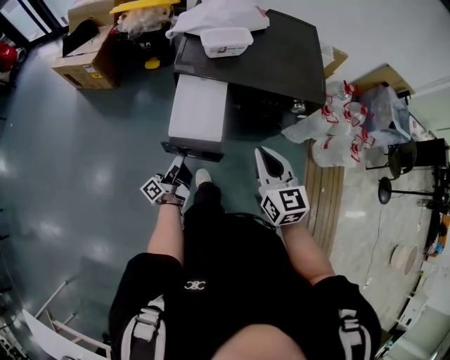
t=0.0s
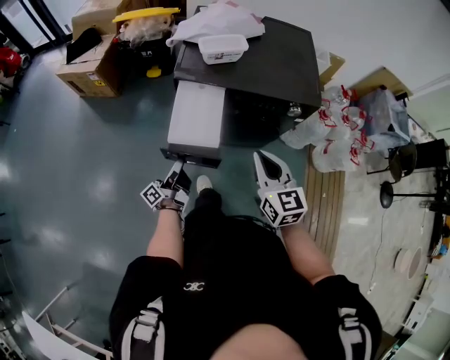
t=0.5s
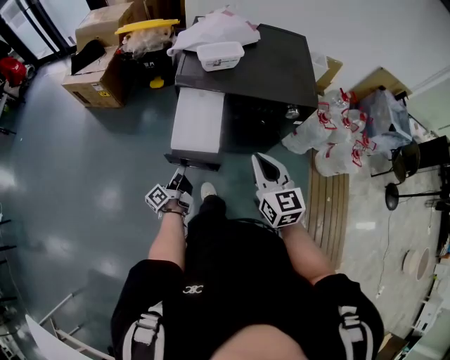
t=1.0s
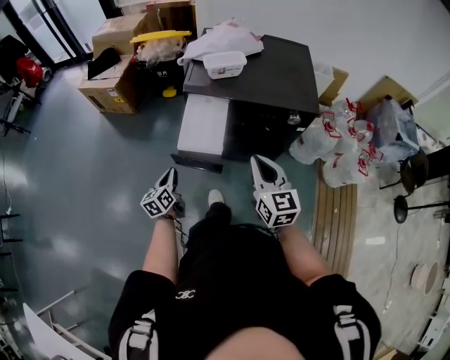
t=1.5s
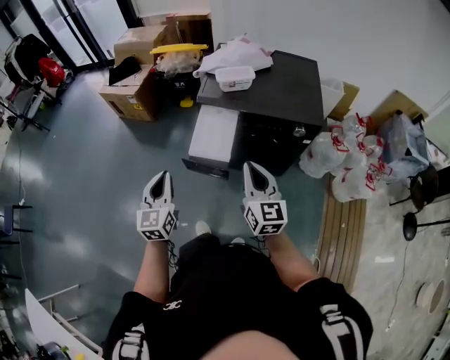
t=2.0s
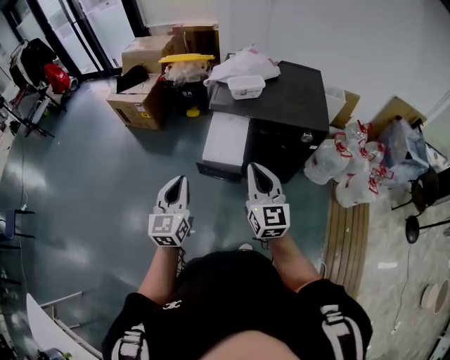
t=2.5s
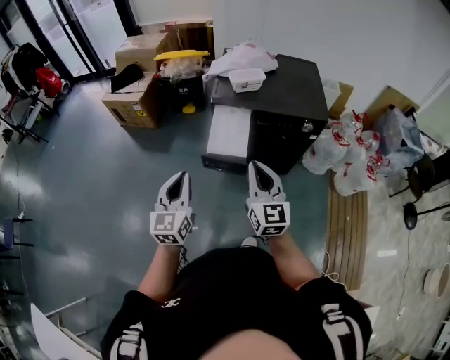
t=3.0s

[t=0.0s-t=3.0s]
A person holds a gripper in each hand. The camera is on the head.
t=0.0s to t=1.5s: The left gripper is displaced to the left by roughly 5 cm, and tilts its fingers about 40 degrees downward. The right gripper shifts by some 5 cm.
t=1.5s to t=3.0s: The right gripper moves to the left, upward and backward, some 15 cm. The left gripper is displaced upward and backward by approximately 30 cm, and changes its angle by some 40 degrees.

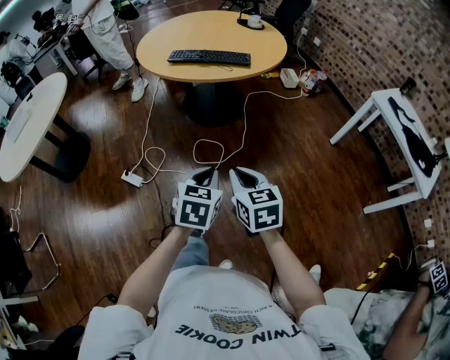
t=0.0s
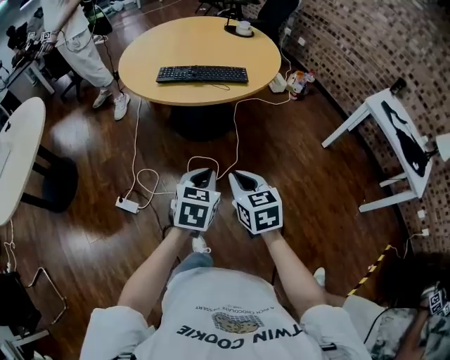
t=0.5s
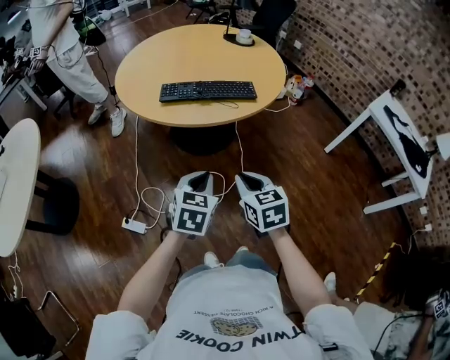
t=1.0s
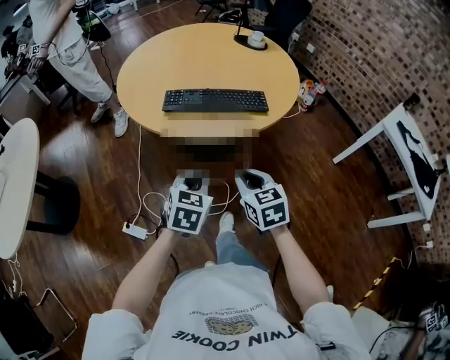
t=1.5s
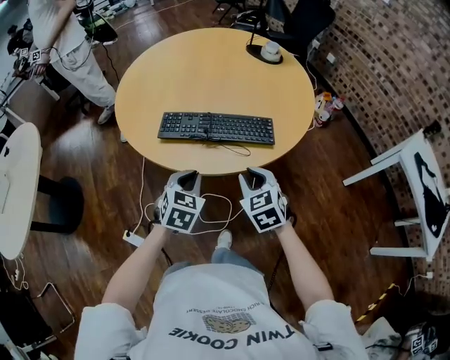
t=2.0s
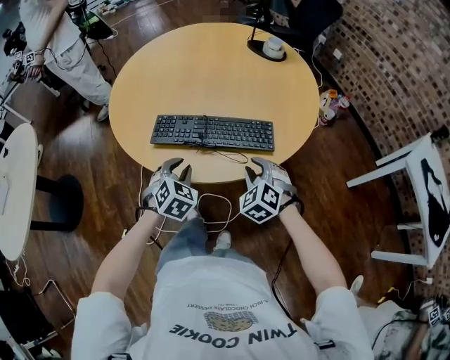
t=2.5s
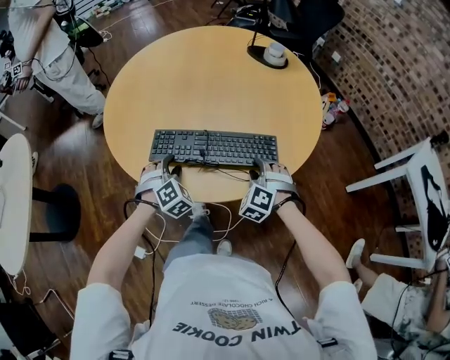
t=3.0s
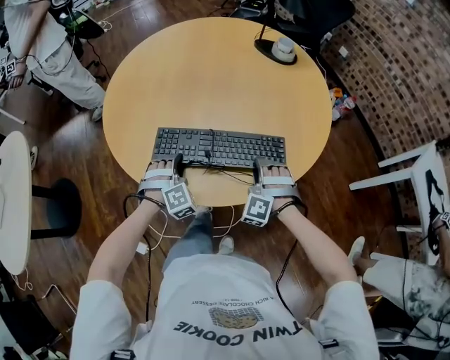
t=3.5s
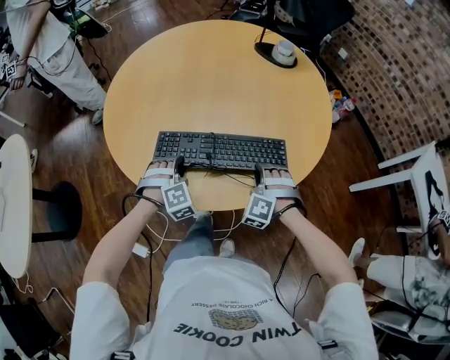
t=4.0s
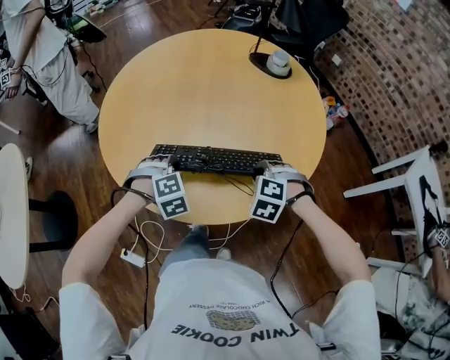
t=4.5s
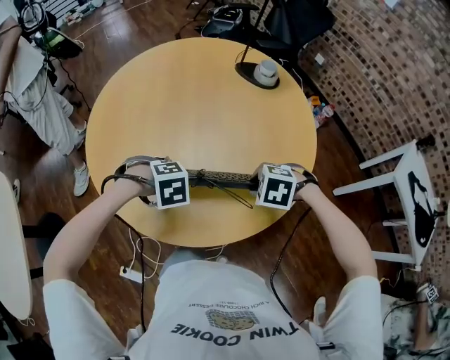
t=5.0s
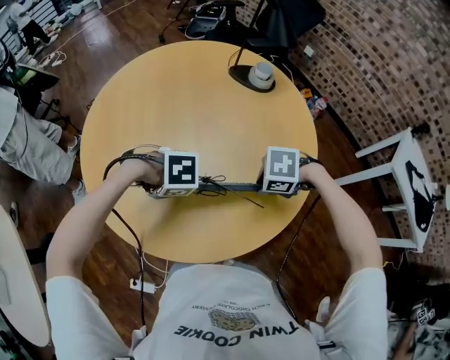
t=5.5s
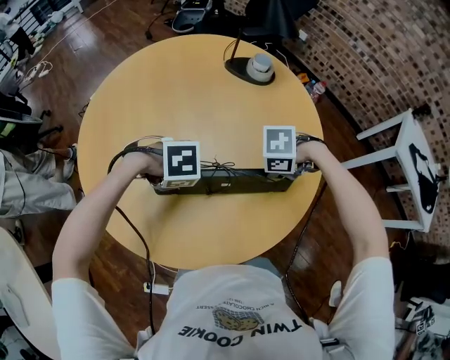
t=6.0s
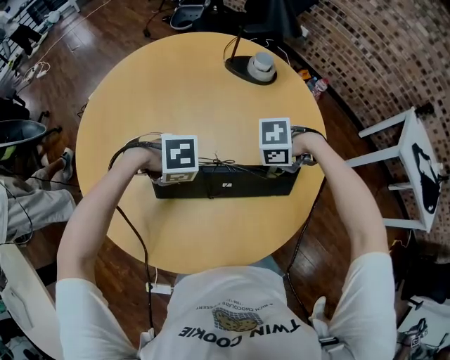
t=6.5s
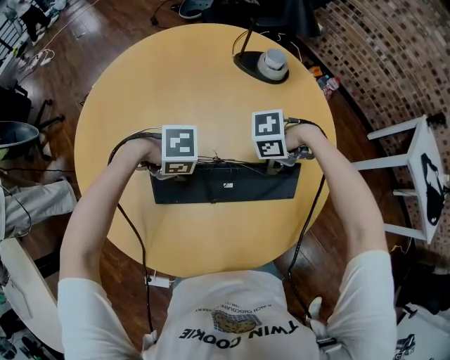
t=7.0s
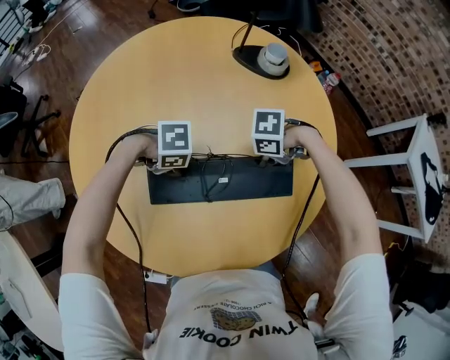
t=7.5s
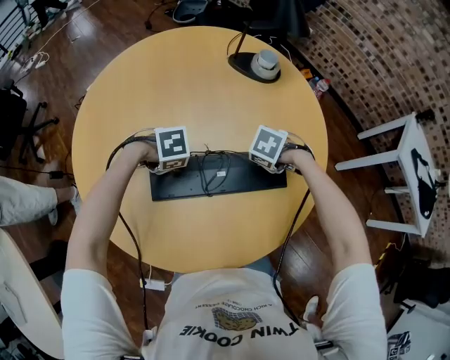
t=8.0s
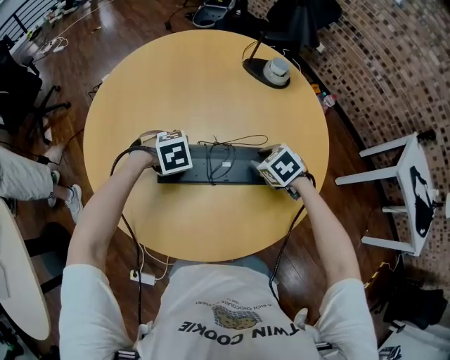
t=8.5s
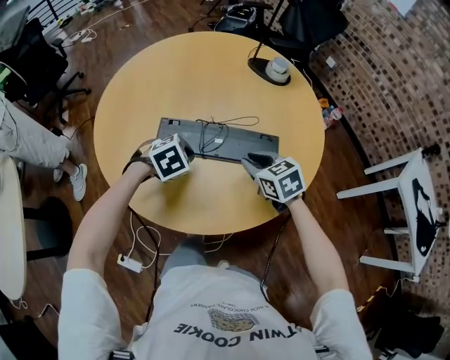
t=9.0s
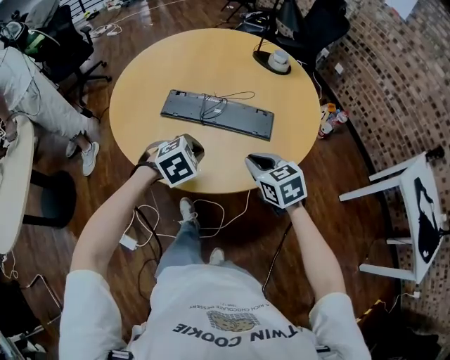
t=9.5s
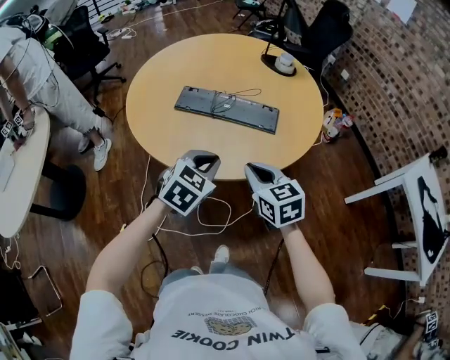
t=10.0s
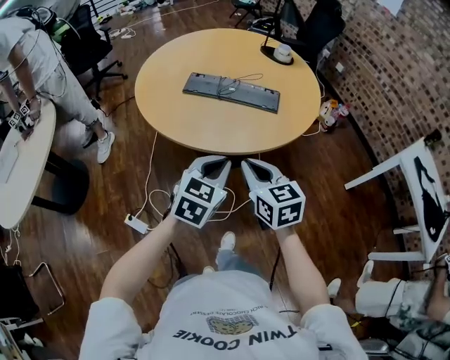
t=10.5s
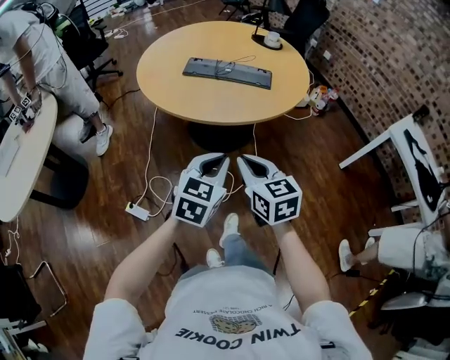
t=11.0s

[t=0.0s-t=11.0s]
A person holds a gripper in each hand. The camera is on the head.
t=0.0s to t=2.0s: The two grippers travel together, forward, some 50 cm. The right gripper swivels approximately 20 degrees.
t=2.0s to t=3.5s: The two grippers go approximately 20 cm forward and downward. The left gripper rolls clockwise, seen from behind, by approximately 50 degrees, and opens up, while the right gripper twists approximately 60 degrees counterclockwise, seen from behind, and opens up.
t=3.5s to t=5.5s: The left gripper ends up roughly 15 cm from where it was, and points its fingers approximately 30 degrees further downward. The right gripper travels upward by roughly 10 cm, and angles its fingers downward, by roughly 30 degrees.
t=5.5s to t=7.5s: The left gripper changes place by approximately 15 cm. The right gripper moves roughly 15 cm.
t=7.5s to t=9.0s: The left gripper ends up some 15 cm from where it was, swivels about 50 degrees, and closes, while the right gripper shifts by approximately 15 cm, and turns by about 70 degrees.
t=9.0s to t=11.0s: The two grippers travel together, backward, approximately 50 cm. The left gripper tips its fingers upward by approximately 40 degrees. Meanwhile the right gripper swivels roughly 20 degrees.

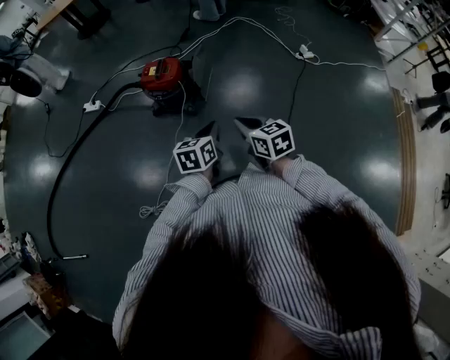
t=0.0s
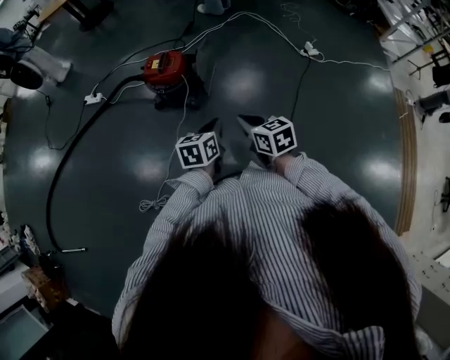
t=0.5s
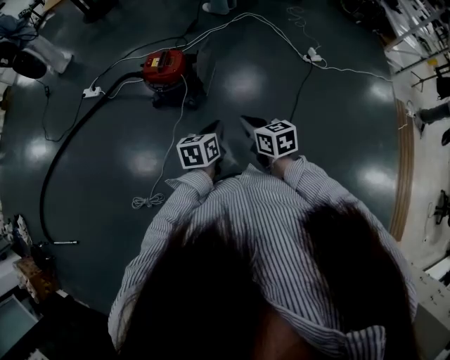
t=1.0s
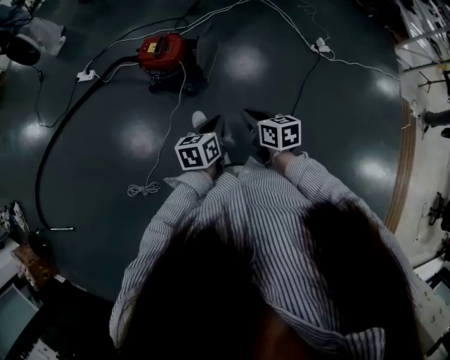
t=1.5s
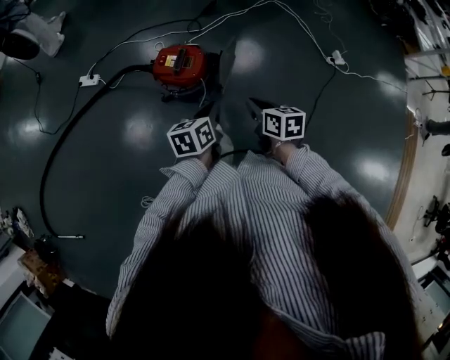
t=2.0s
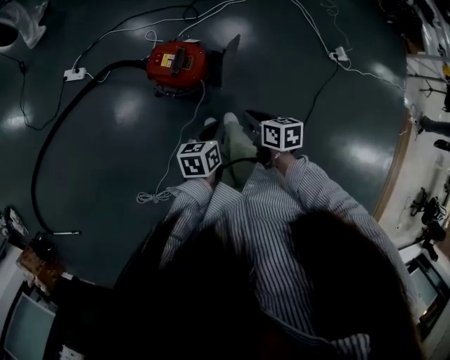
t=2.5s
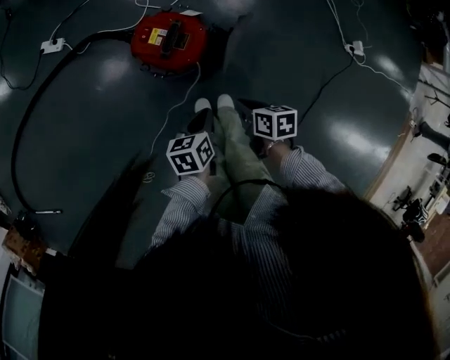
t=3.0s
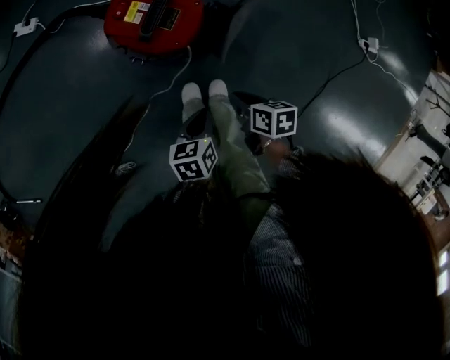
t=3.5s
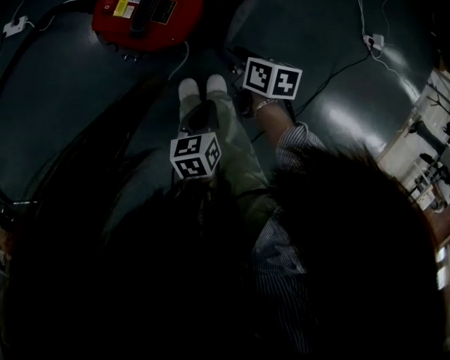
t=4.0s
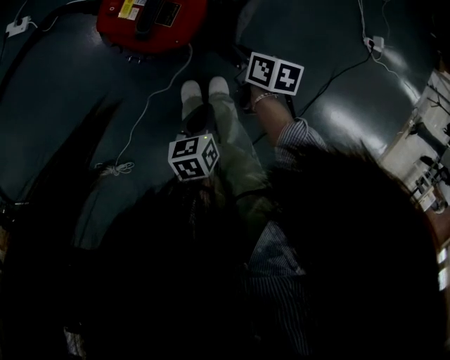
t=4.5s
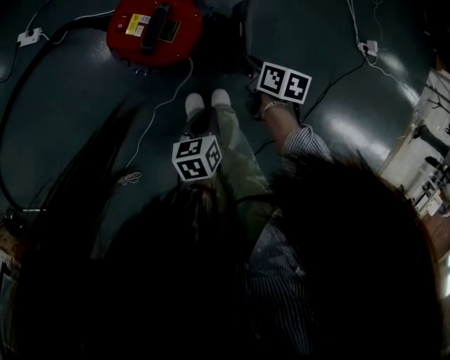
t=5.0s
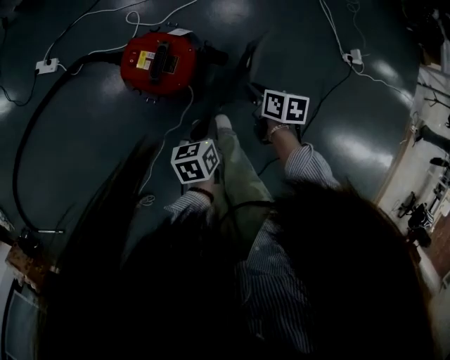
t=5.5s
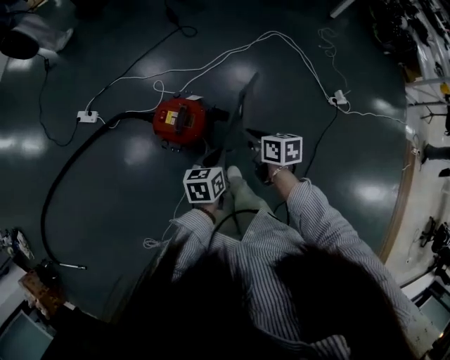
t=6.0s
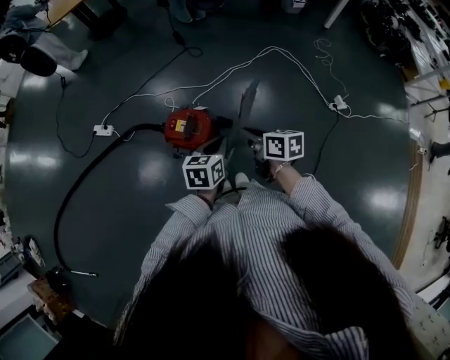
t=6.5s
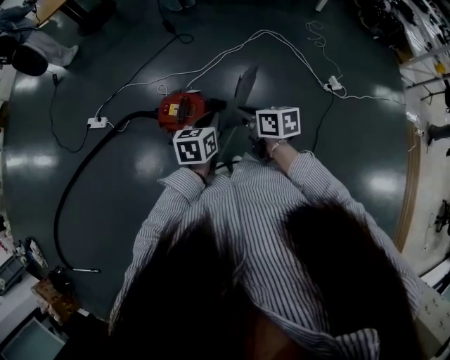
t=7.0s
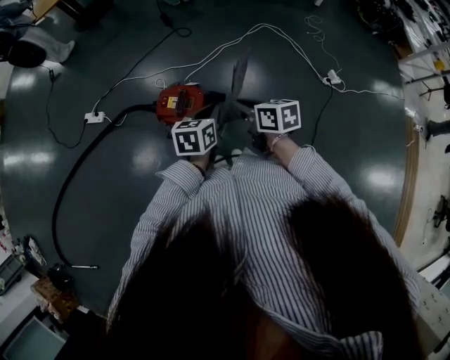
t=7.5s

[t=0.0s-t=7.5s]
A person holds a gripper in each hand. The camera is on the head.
t=0.0s to t=2.0s: The grippers both shift forward by some 25 cm.
t=2.0s to t=4.0s: The right gripper is displaced downward and forward by some 40 cm, rotates some 20 degrees, and opens its fingers, while the left gripper shifts approximately 30 cm downward, and rotates some 20 degrees.
t=4.0s to t=5.5s: The right gripper is displaced upward and to the right by roughly 15 cm, and closes up. Meanwhile the left gripper shifts about 10 cm upward and forward.
t=5.5s to t=7.5s: The two grippers go roughly 30 cm upward. The left gripper changes its angle by about 30 degrees. The right gripper rotates some 20 degrees.

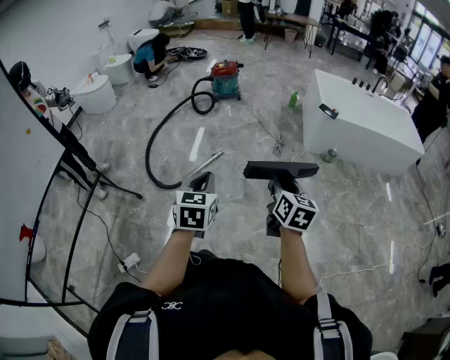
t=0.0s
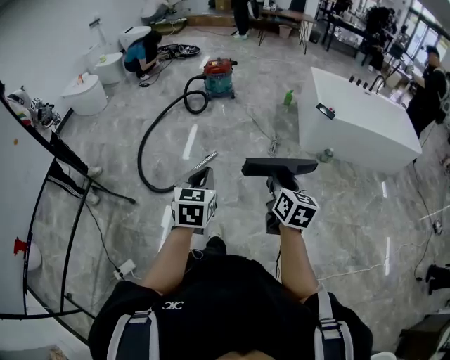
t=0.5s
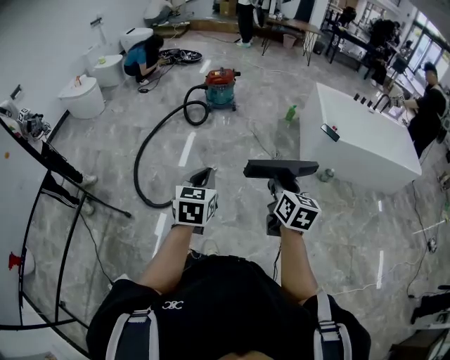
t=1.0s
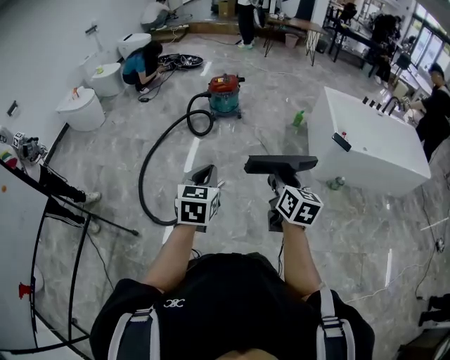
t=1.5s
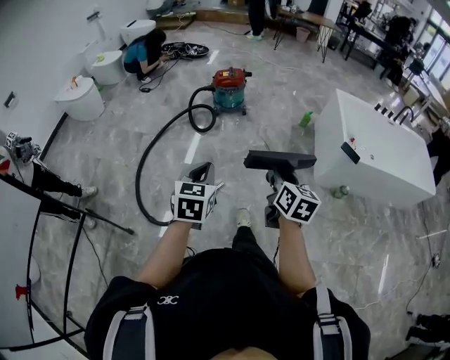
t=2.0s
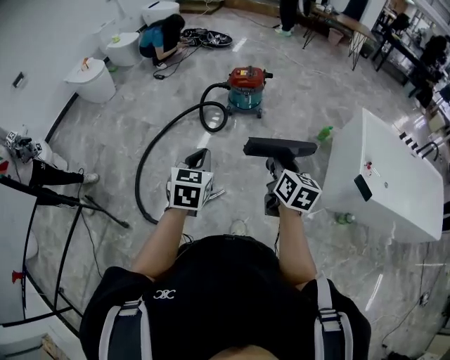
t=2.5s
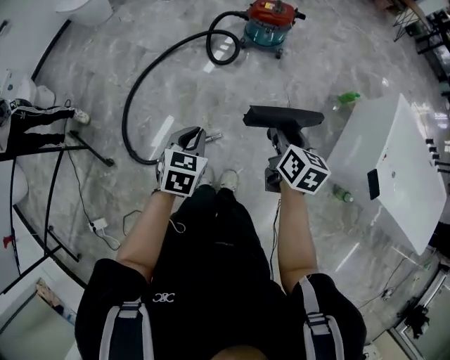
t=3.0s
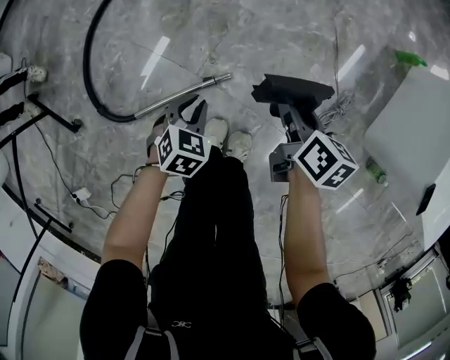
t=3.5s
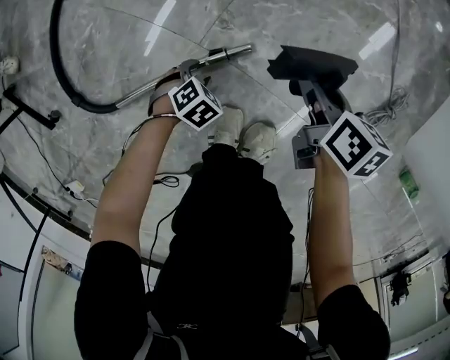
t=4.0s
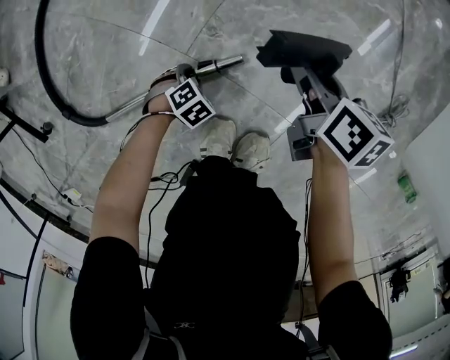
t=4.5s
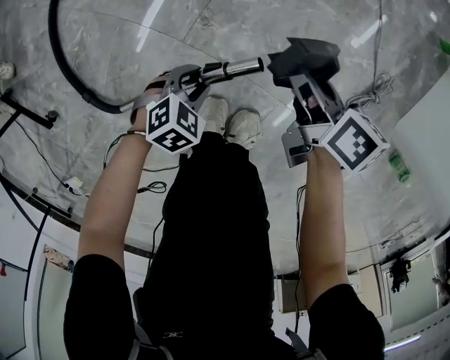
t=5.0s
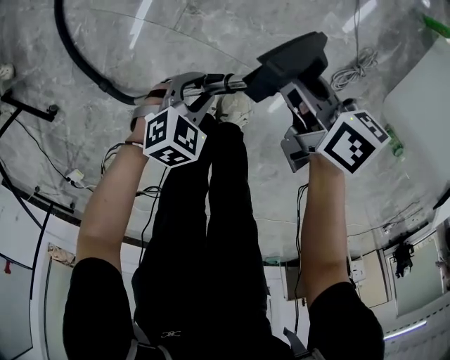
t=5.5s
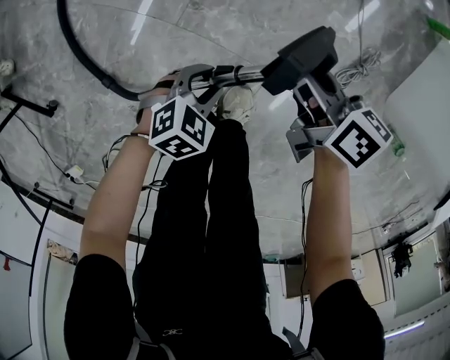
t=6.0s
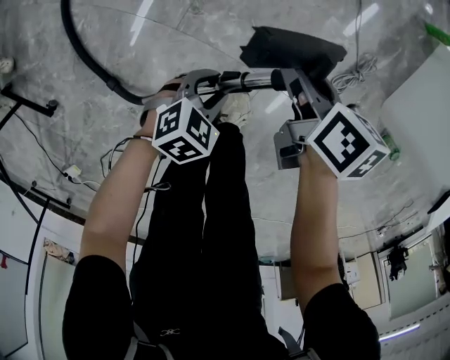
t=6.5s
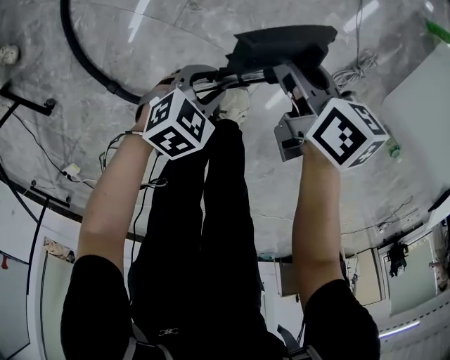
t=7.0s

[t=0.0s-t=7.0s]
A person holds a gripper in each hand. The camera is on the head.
t=0.0s to t=2.0s: The pair of grippers is taken forward, roughly 50 cm.
t=2.0s to t=3.5s: The grippers both shift downward and forward by approximately 70 cm. The left gripper points its fingers about 30 degrees further downward; the right gripper rotates approximately 40 degrees.
t=3.5s to t=5.0s: The grippers both shift downward by some 20 cm. The left gripper turns by about 30 degrees, and opens.
t=5.0s to t=7.0s: Both grippers move upward, approximately 10 cm.
